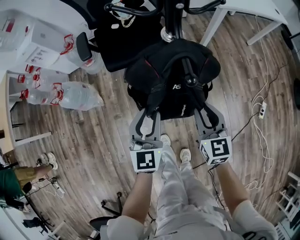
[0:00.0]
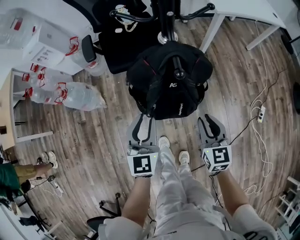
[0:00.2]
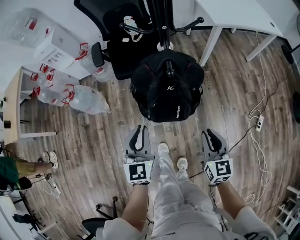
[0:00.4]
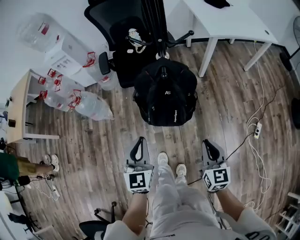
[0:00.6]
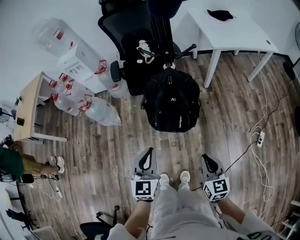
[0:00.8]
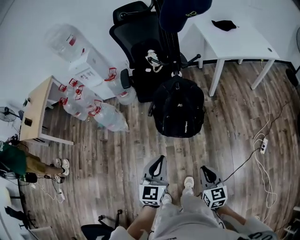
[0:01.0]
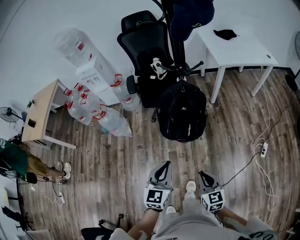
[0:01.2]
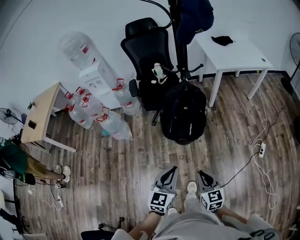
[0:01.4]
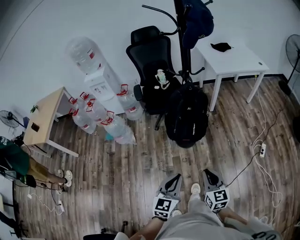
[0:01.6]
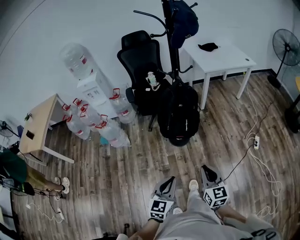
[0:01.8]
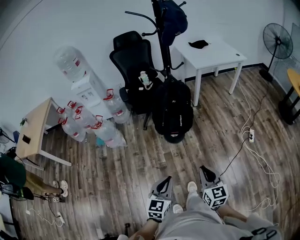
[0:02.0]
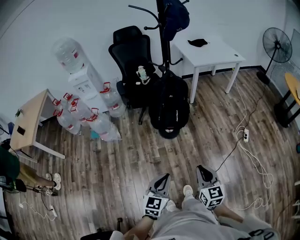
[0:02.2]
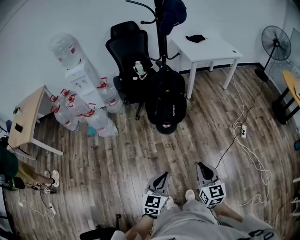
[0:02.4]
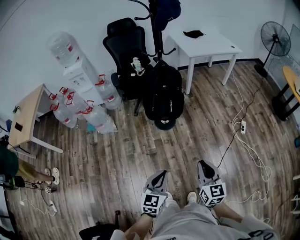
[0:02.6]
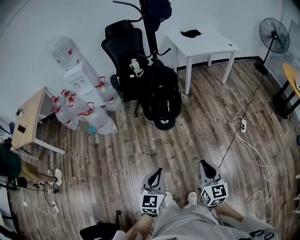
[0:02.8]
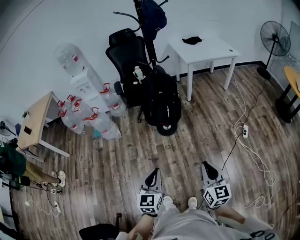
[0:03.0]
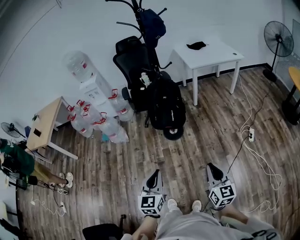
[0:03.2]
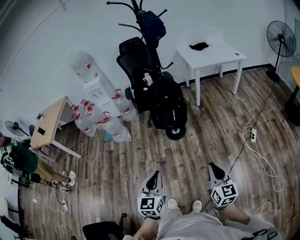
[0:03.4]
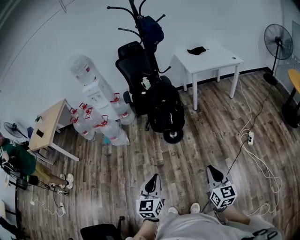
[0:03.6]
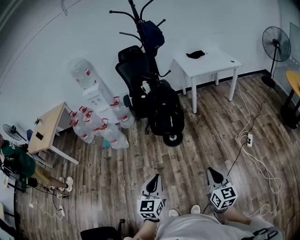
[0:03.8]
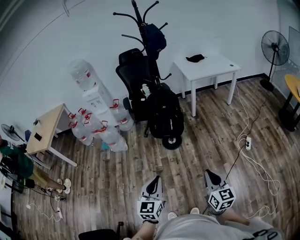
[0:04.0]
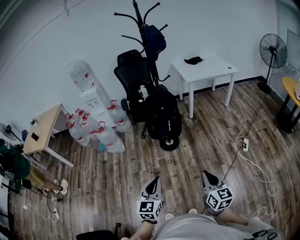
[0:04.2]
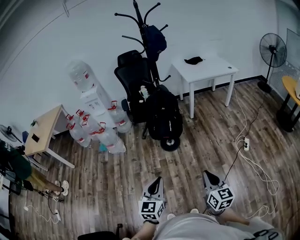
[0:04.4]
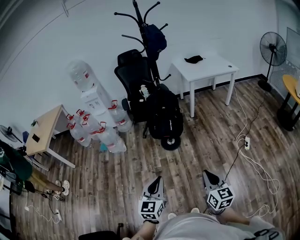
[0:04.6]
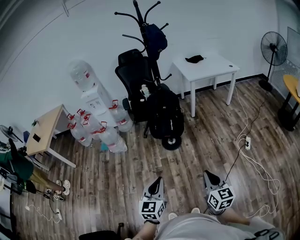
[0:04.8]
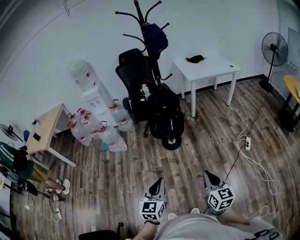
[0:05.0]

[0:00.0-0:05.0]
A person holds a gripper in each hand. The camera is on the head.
0:00.0 to 0:01.6: The two grippers travel together, backward, roughly 40 cm. The grippers both shift upward by approximately 20 cm. The left gripper closes its fingers.
0:01.6 to 0:03.4: The left gripper travels backward by about 20 cm. Meanwhile the right gripper shifts some 30 cm backward and to the right.
0:03.4 to 0:05.0: The right gripper shifts by about 5 cm.

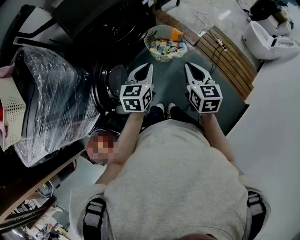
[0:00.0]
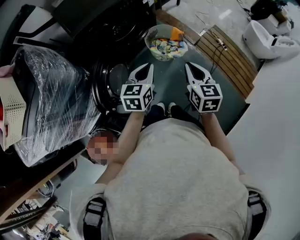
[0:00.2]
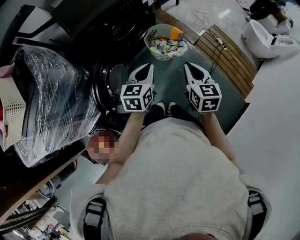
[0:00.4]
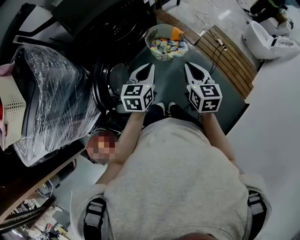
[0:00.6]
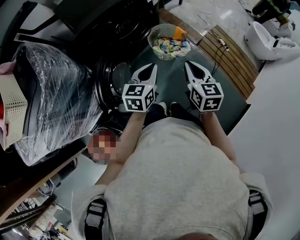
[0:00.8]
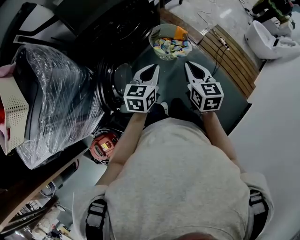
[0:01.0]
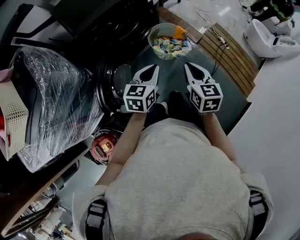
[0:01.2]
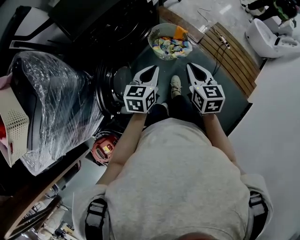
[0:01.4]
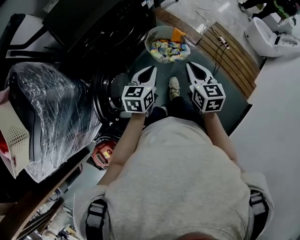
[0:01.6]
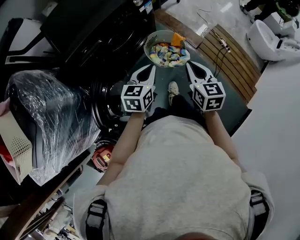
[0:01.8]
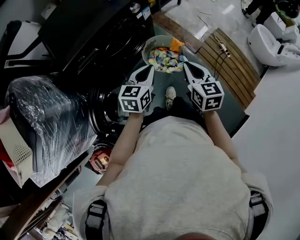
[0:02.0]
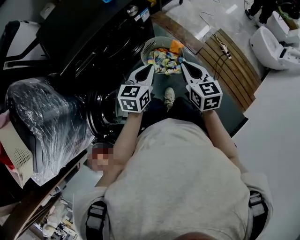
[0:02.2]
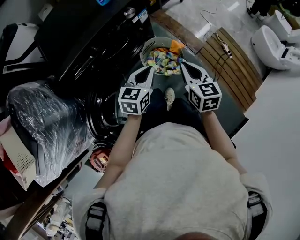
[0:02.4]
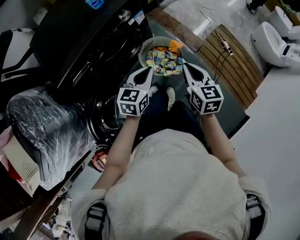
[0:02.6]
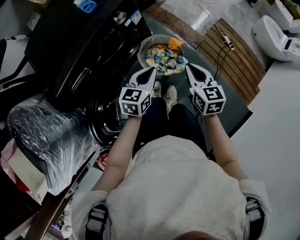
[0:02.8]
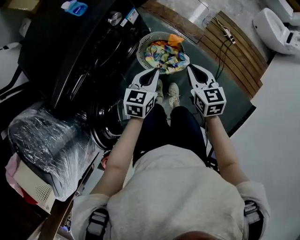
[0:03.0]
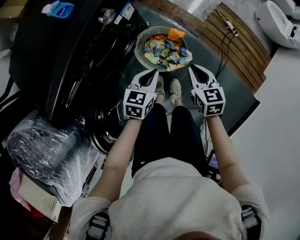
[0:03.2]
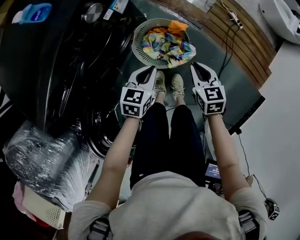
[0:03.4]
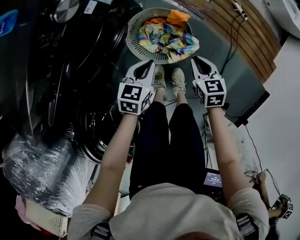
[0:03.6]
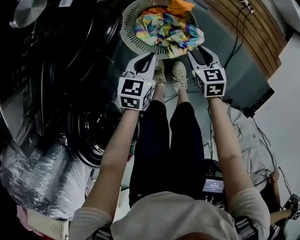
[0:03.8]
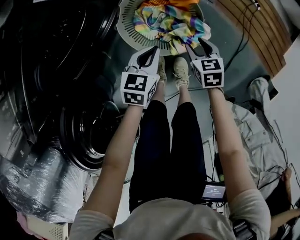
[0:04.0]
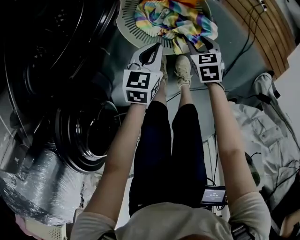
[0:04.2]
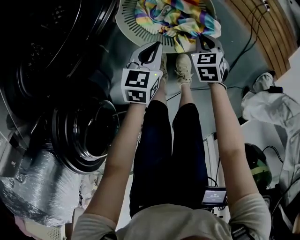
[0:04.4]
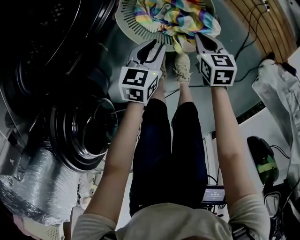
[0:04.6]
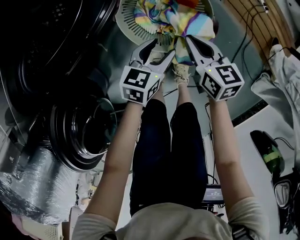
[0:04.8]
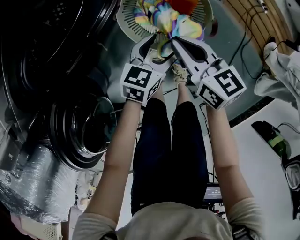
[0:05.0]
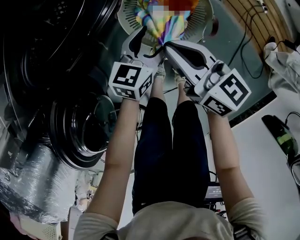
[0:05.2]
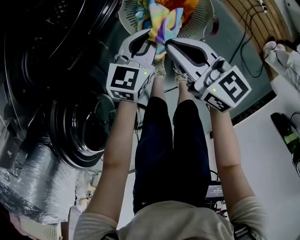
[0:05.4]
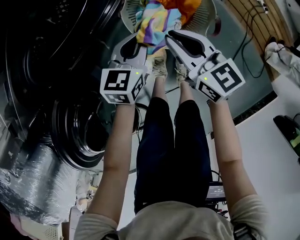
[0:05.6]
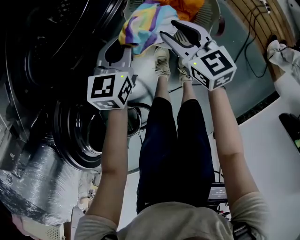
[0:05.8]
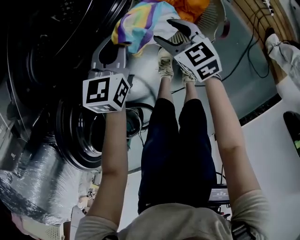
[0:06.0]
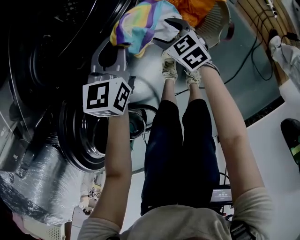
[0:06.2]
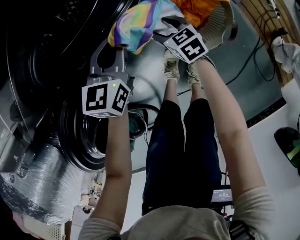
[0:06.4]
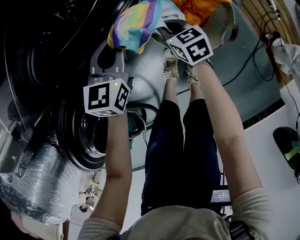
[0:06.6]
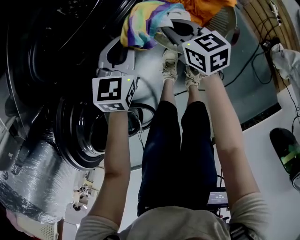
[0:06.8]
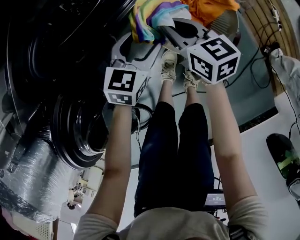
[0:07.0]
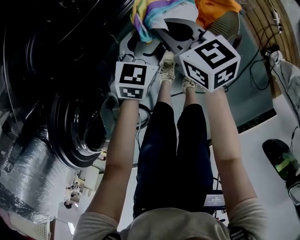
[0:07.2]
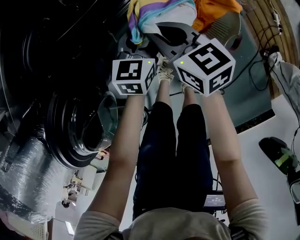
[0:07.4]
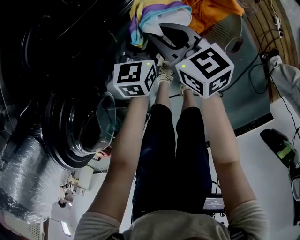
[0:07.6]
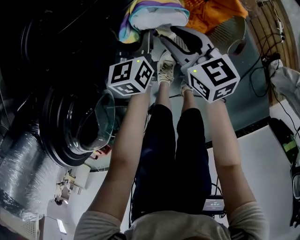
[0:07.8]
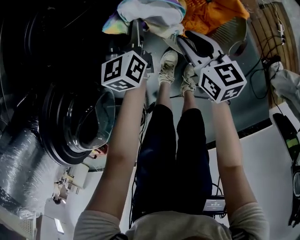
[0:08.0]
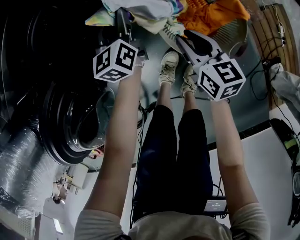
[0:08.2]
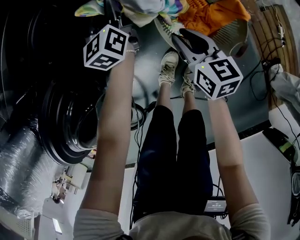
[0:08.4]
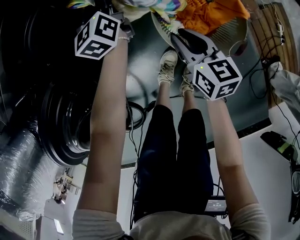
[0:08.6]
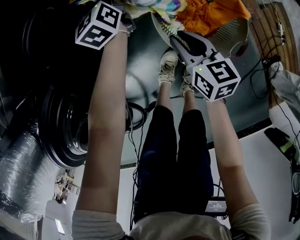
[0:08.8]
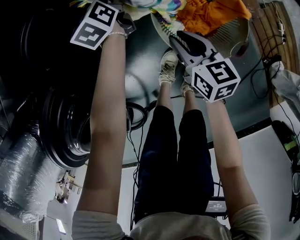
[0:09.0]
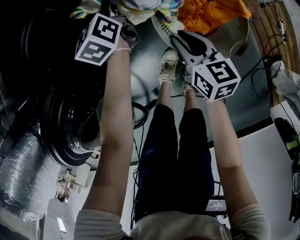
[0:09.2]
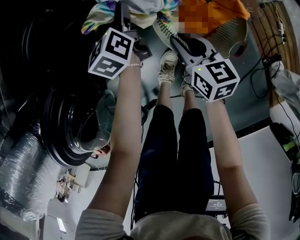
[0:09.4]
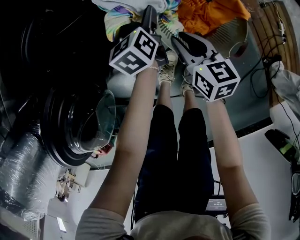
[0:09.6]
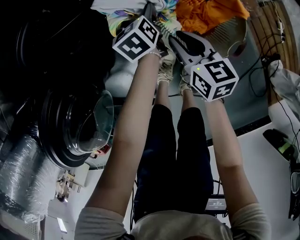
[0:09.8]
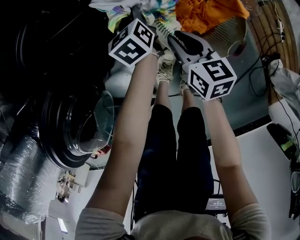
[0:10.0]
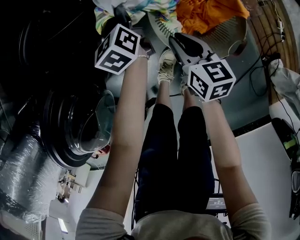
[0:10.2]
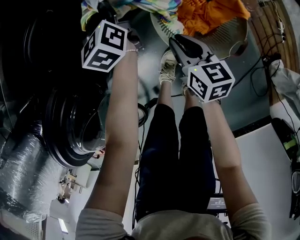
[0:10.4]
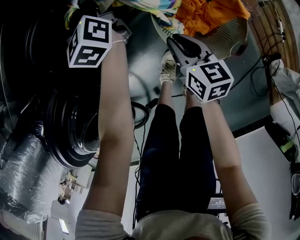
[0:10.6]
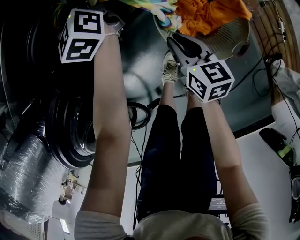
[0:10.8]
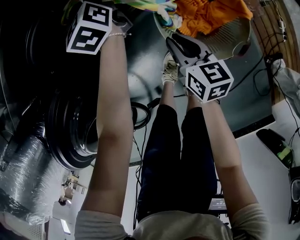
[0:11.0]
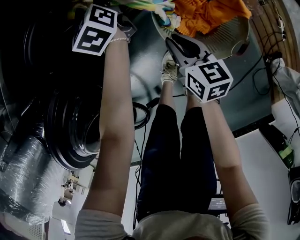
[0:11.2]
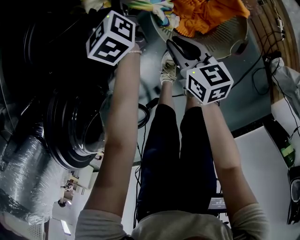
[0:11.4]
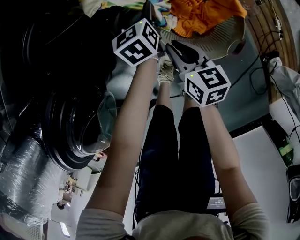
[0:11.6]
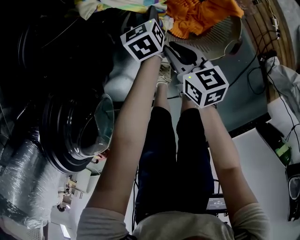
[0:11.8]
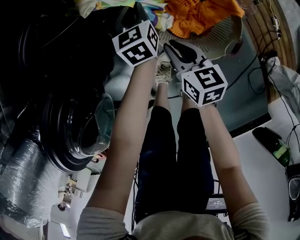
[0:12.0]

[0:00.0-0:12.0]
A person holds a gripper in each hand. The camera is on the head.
0:00.0 to 0:01.6: The two grippers go approximately 10 cm forward.
0:01.6 to 0:03.0: Both grippers move forward and downward, roughly 20 cm.
0:03.0 to 0:04.4: Both grippers travel together downward, approximately 40 cm. The right gripper angles its fingers downward, by about 30 degrees, and opens, then closes again.
0:04.4 to 0:06.0: The left gripper shifts by some 15 cm, and opens, then closes once more, while the right gripper shifts by roughly 20 cm, angles its fingers upward, by approximately 30 degrees, and opens its fingers.
0:06.0 to 0:07.6: The right gripper shifts about 10 cm upward and to the left, and closes its fingers; the left gripper is displaced downward by approximately 10 cm, and opens and closes again.
0:07.6 to 0:09.0: The left gripper travels forward by approximately 20 cm, and rotates some 30 degrees, while the right gripper shifts by some 5 cm.
0:09.0 to 0:10.4: The left gripper closes.
0:10.4 to 0:12.0: The left gripper moves up and down over some 20 cm, changing direction 2 times, turns by approximately 20 degrees, and opens, then closes again.

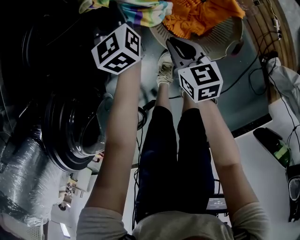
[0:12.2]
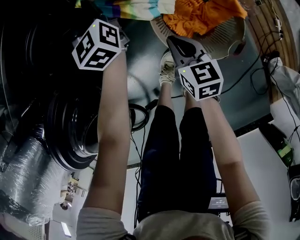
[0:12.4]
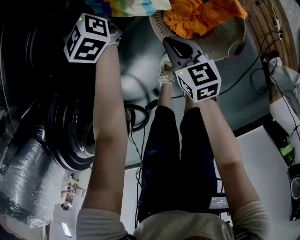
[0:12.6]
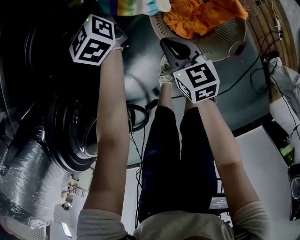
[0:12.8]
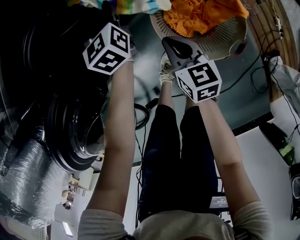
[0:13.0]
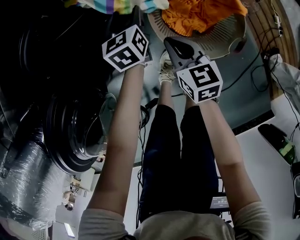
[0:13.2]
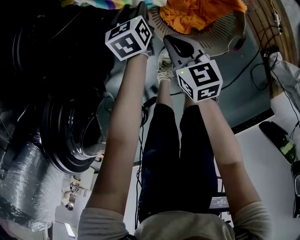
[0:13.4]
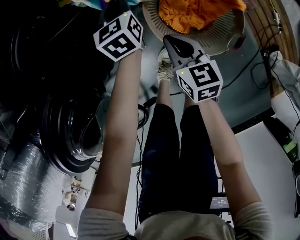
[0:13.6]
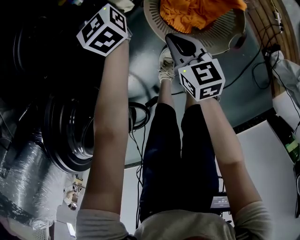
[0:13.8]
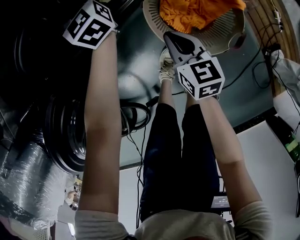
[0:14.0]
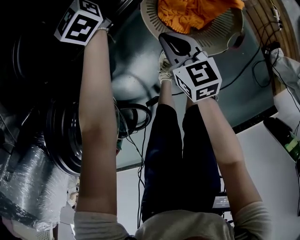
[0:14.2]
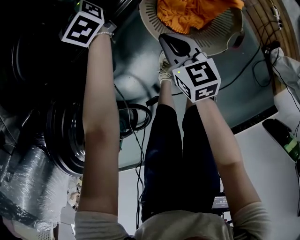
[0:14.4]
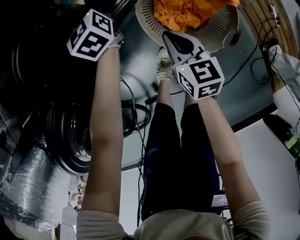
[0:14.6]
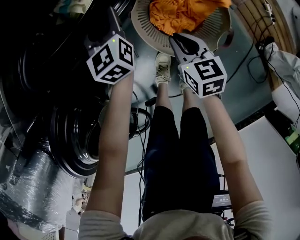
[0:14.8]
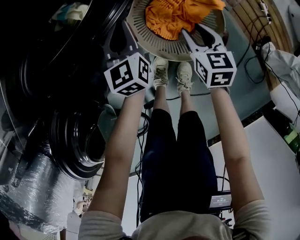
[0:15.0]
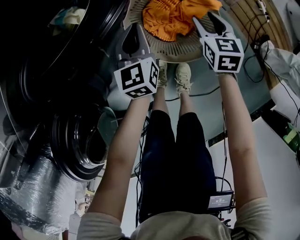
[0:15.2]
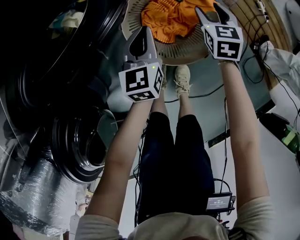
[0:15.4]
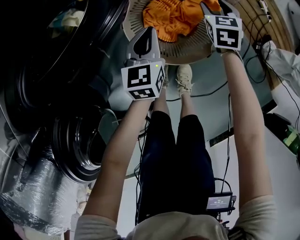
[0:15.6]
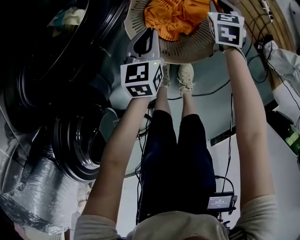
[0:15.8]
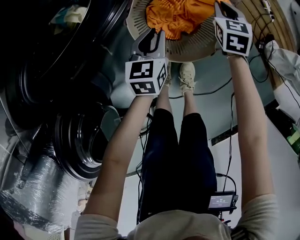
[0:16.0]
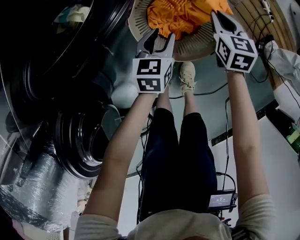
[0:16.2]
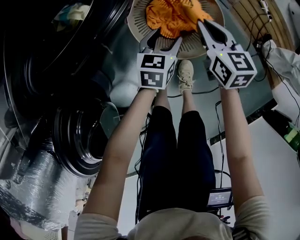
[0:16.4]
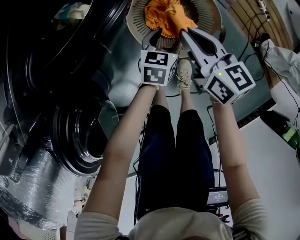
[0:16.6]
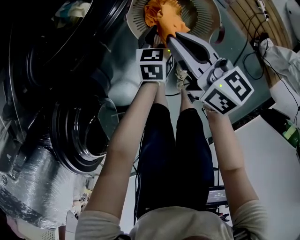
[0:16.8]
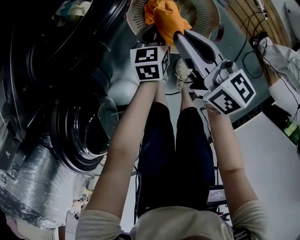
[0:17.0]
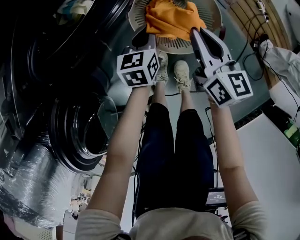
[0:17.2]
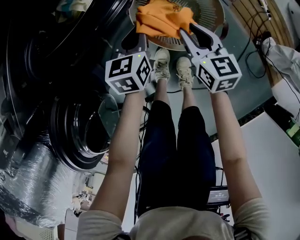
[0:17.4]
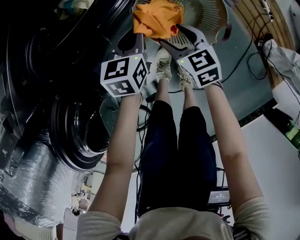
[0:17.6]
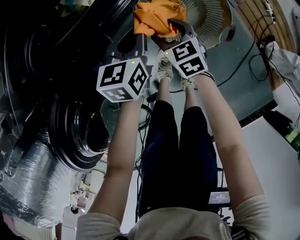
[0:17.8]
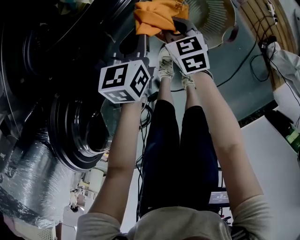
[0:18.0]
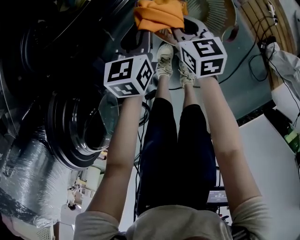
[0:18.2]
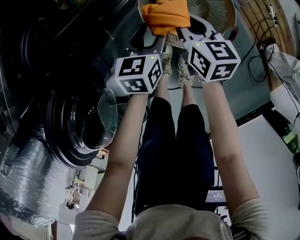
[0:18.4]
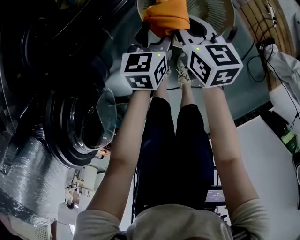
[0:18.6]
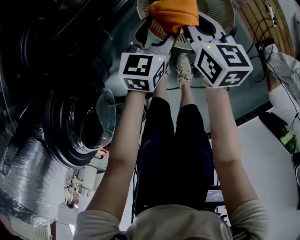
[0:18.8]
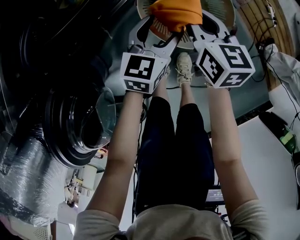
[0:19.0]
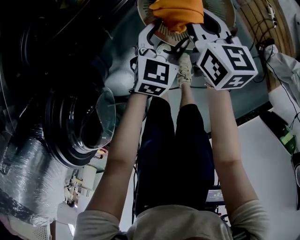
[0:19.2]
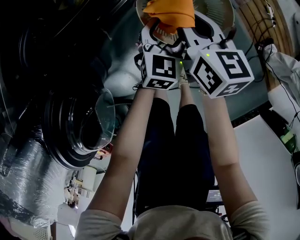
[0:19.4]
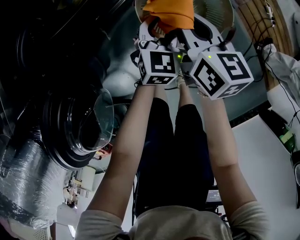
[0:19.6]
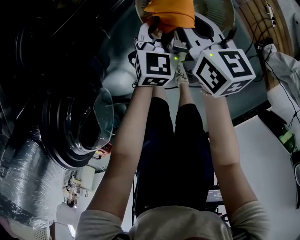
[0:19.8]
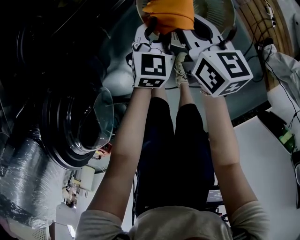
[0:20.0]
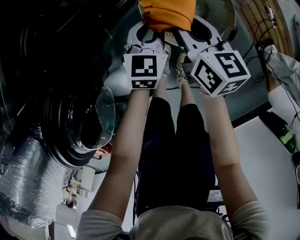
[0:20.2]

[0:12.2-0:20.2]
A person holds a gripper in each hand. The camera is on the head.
0:12.2 to 0:13.8: The left gripper moves up and down over approximately 15 cm, changing direction 2 times, and opens, then closes again.
0:13.8 to 0:15.4: The left gripper changes place by roughly 25 cm, rotates some 30 degrees, and opens, then closes once more; the right gripper ends up some 25 cm from where it was, turns by about 30 degrees, and opens its fingers.
0:15.4 to 0:17.0: The left gripper opens and closes again. Meanwhile the right gripper is displaced upward, backward and to the left by approximately 25 cm, points its fingers about 40 degrees further upward, and closes its fingers.
0:17.0 to 0:18.6: The right gripper goes roughly 10 cm downward, swivels roughly 30 degrees, and opens and closes again, while the left gripper opens.
0:18.6 to 0:20.2: The left gripper turns by approximately 20 degrees, and closes its fingers.
